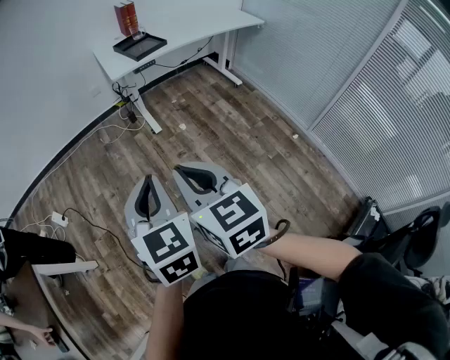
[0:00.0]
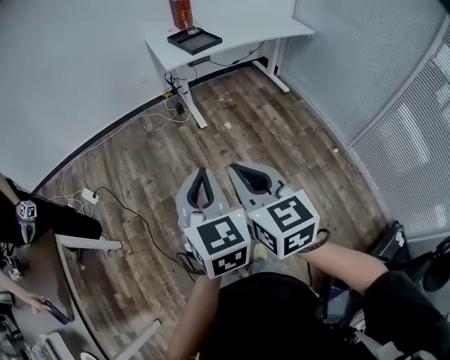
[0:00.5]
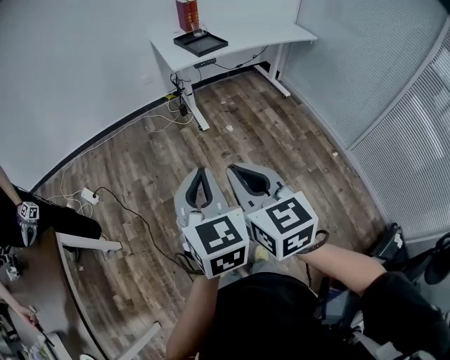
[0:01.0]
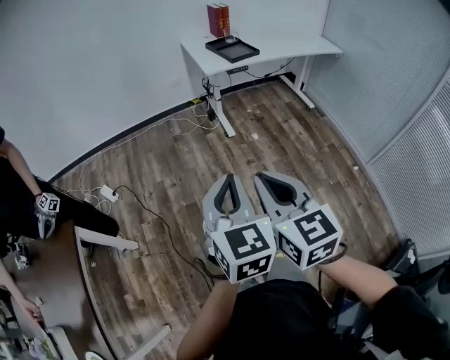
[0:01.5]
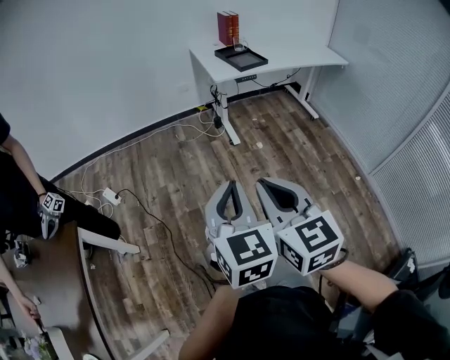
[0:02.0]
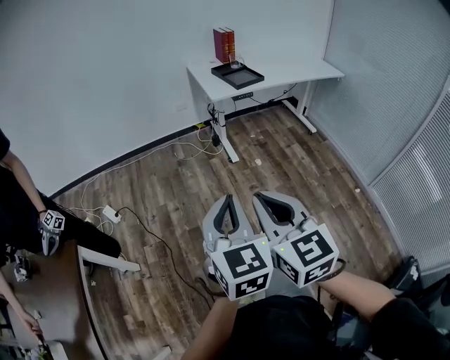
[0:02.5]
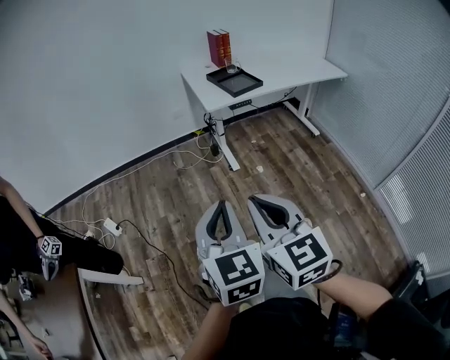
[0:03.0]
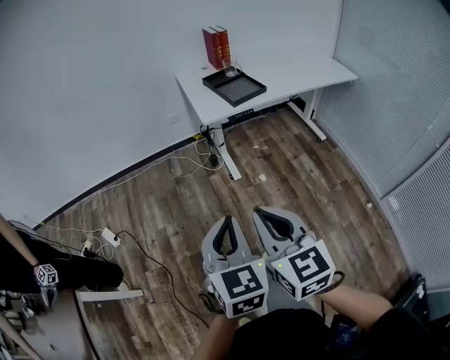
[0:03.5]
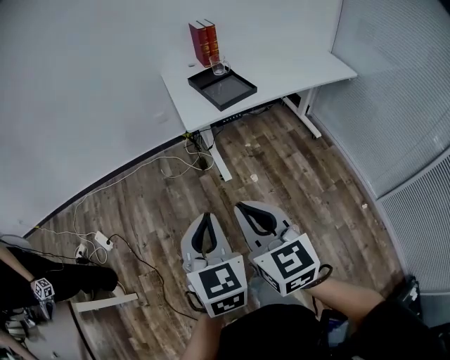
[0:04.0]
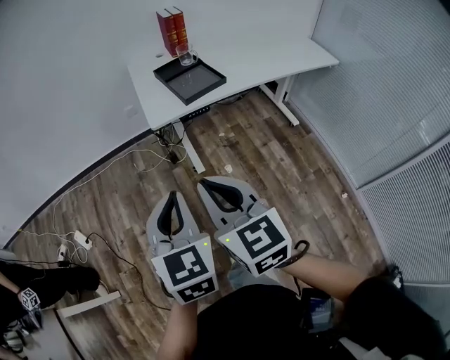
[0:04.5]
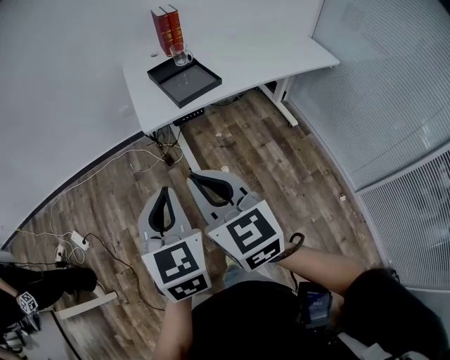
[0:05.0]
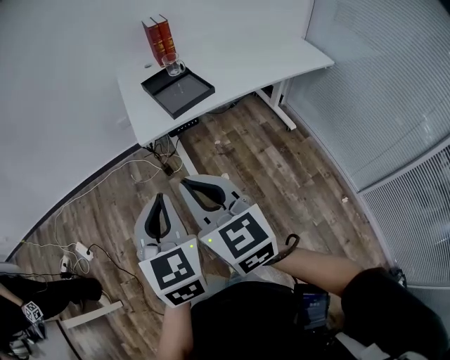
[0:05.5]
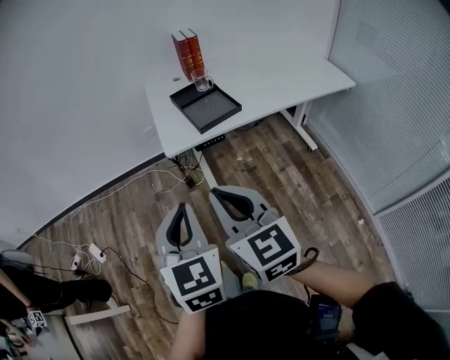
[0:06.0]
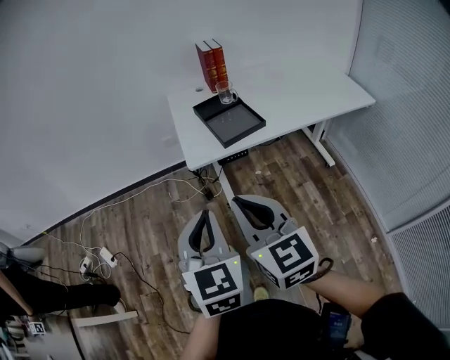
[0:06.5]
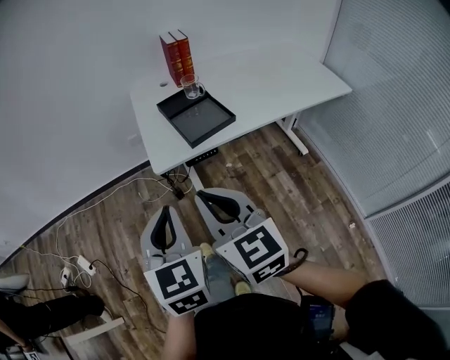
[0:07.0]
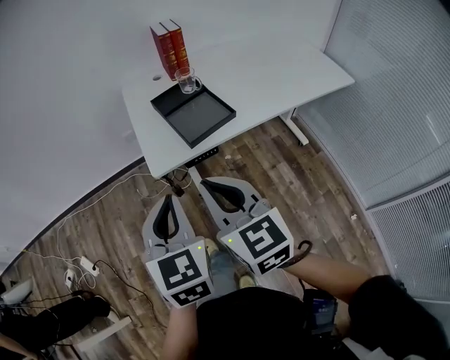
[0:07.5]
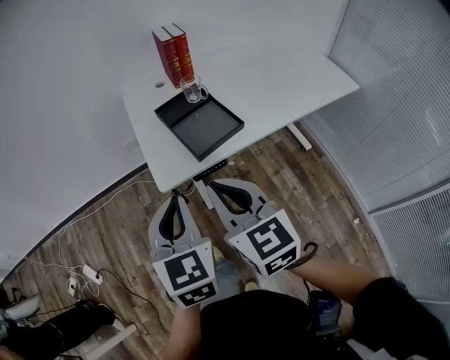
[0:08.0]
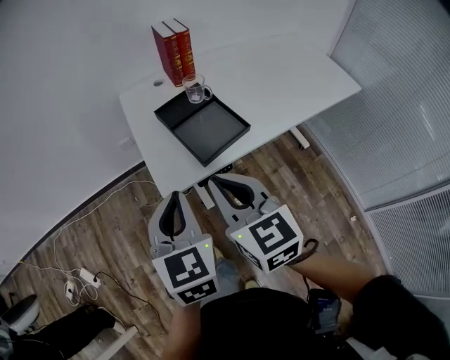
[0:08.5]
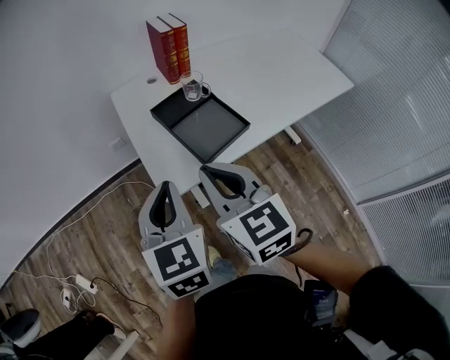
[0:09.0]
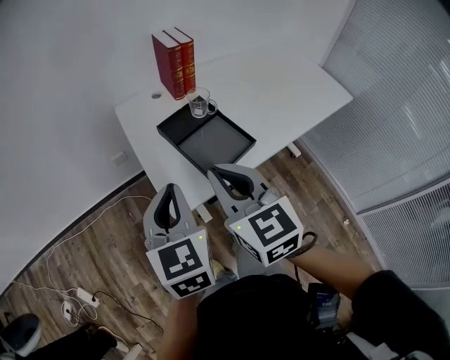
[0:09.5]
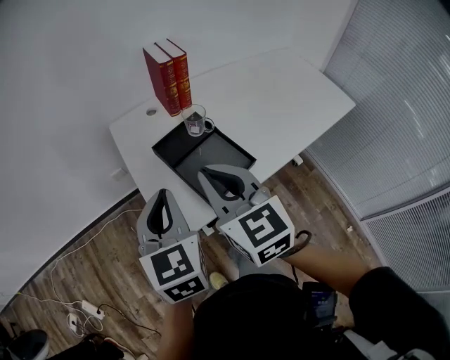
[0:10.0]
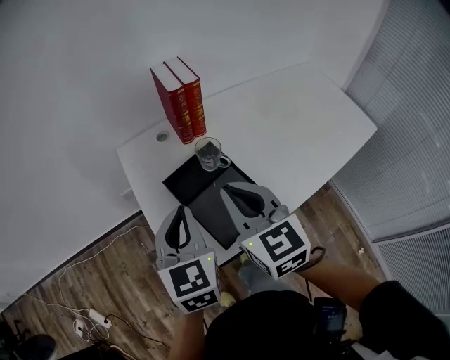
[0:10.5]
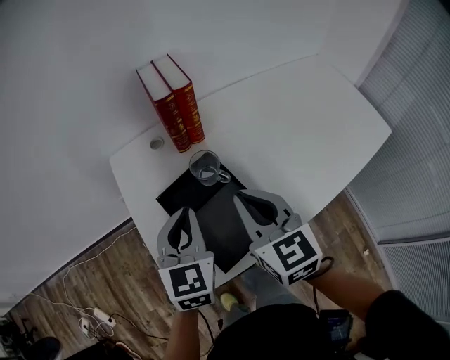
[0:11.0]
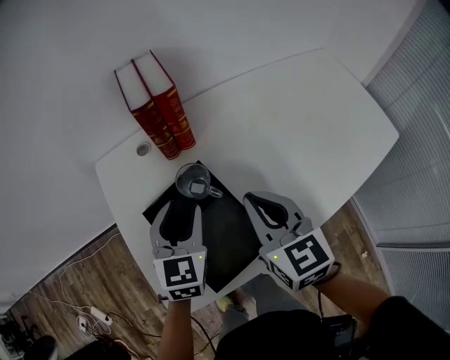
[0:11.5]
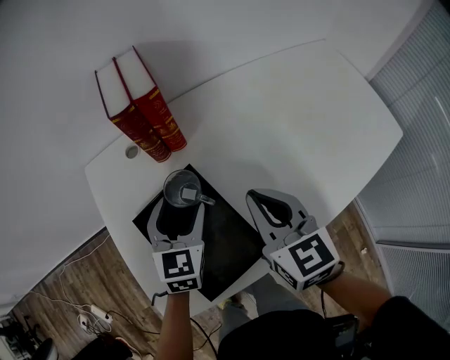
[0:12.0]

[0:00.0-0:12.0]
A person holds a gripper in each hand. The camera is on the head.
0:00.0 to 0:02.0: The grippers both shift to the left by some 10 cm.
0:02.0 to 0:04.0: Both grippers move forward and to the right, approximately 35 cm.
0:04.0 to 0:06.0: Both grippers move forward and to the right, approximately 15 cm.
0:06.0 to 0:08.0: Both grippers travel together forward, about 20 cm.
0:08.0 to 0:10.0: Both grippers move forward, roughly 20 cm.
0:10.0 to 0:12.0: The left gripper goes approximately 30 cm forward, downward and to the right, and opens up; the right gripper goes about 30 cm forward, to the right and downward.

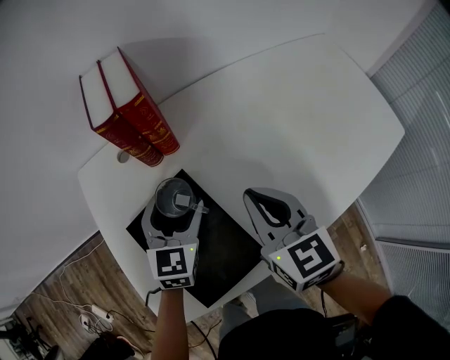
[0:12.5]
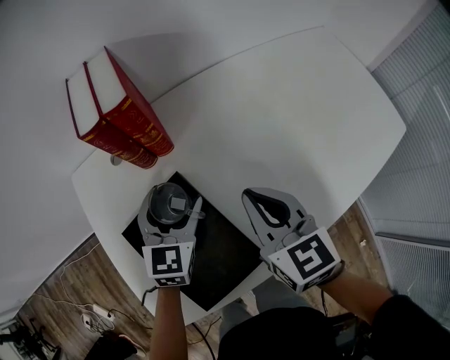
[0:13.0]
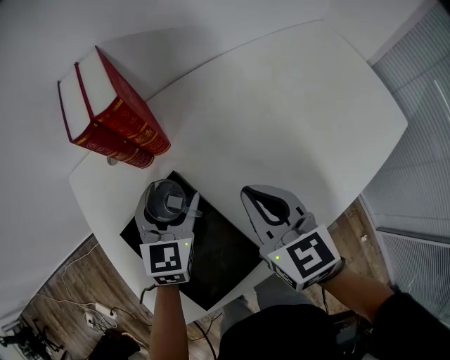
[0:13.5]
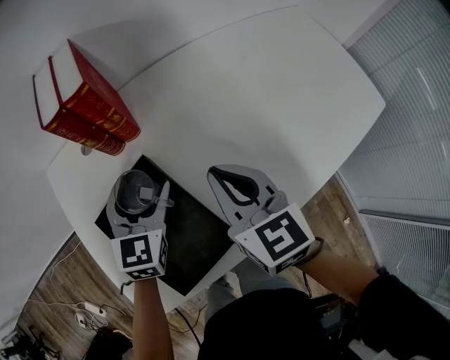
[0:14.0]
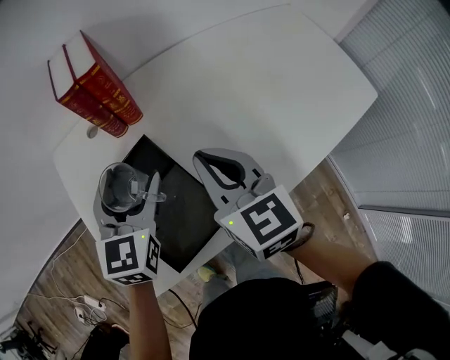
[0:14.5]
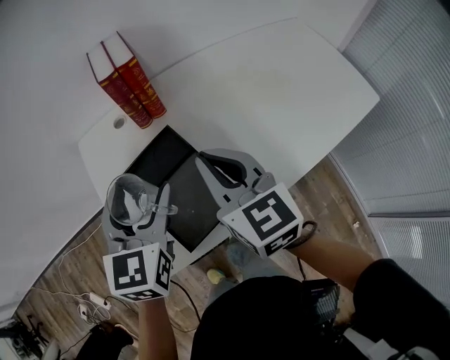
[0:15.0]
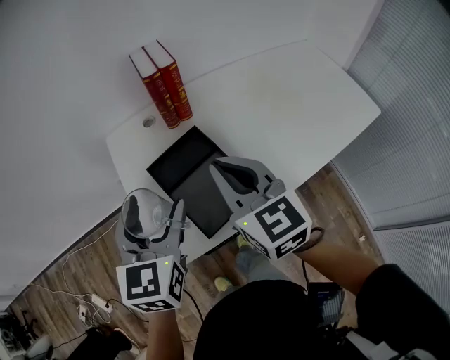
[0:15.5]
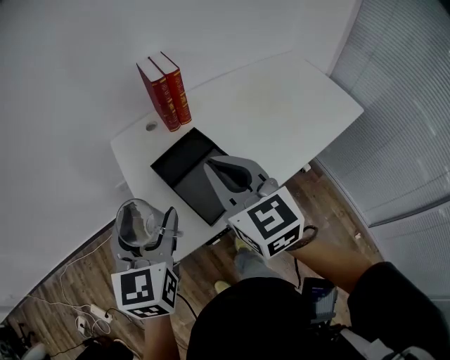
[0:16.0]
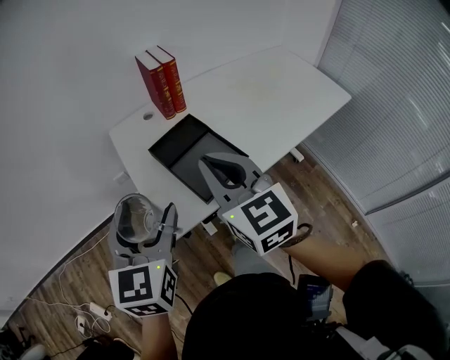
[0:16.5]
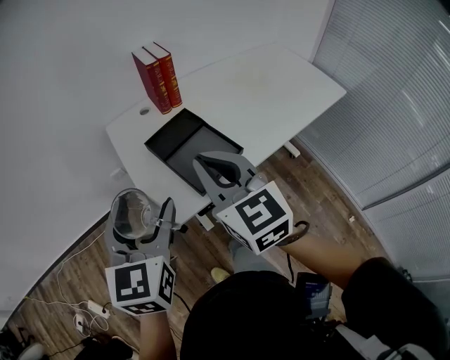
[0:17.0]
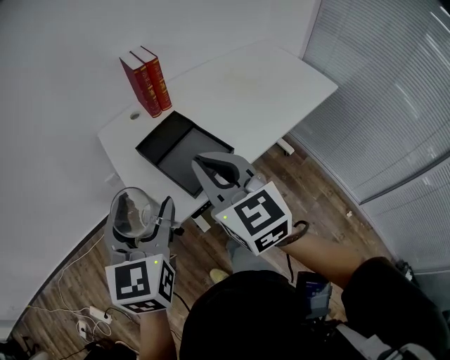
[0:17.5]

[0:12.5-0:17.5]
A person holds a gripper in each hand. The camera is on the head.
0:12.5 to 0:15.0: The right gripper travels backward, upward and to the left by roughly 10 cm; the left gripper is displaced upward and backward by about 20 cm.
0:15.0 to 0:17.5: The left gripper heads backward and to the left, covering about 25 cm; the right gripper is displaced backward, to the left and upward by roughly 25 cm.

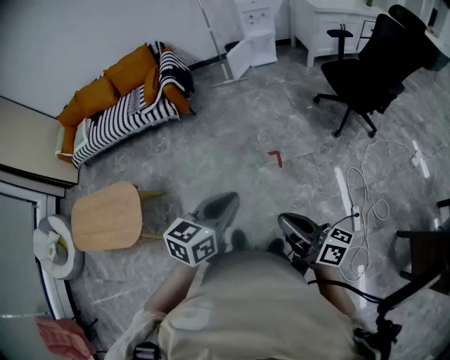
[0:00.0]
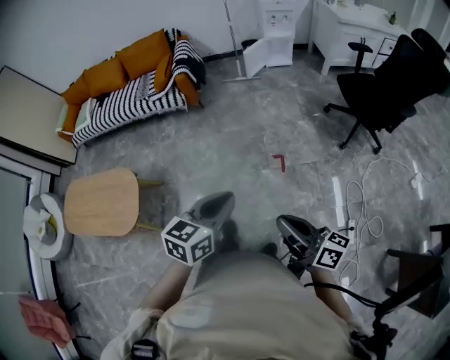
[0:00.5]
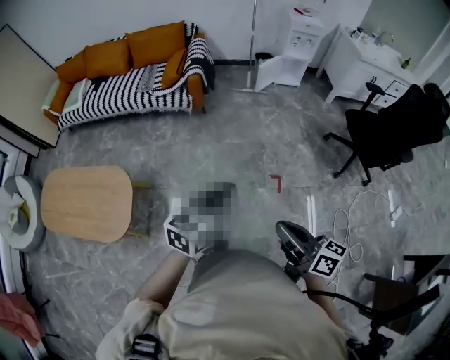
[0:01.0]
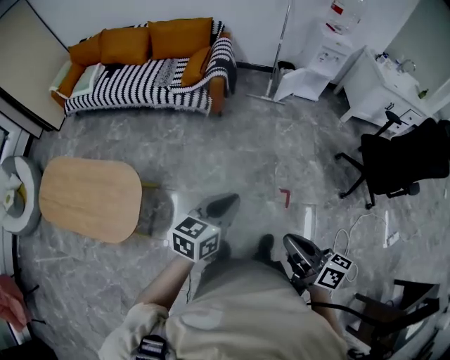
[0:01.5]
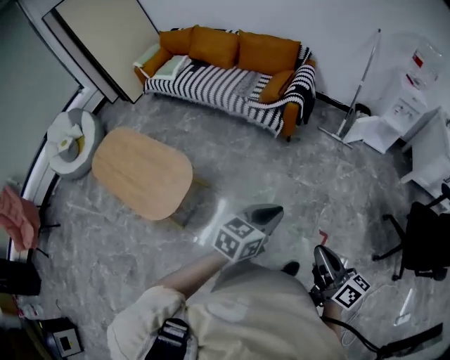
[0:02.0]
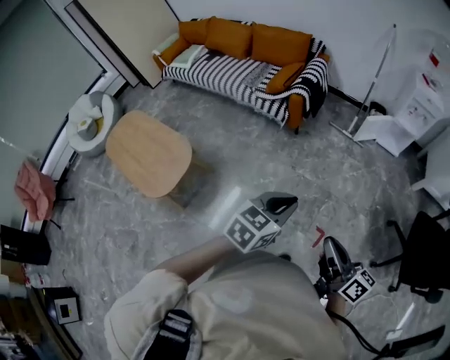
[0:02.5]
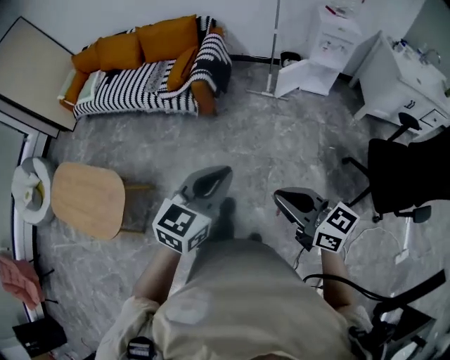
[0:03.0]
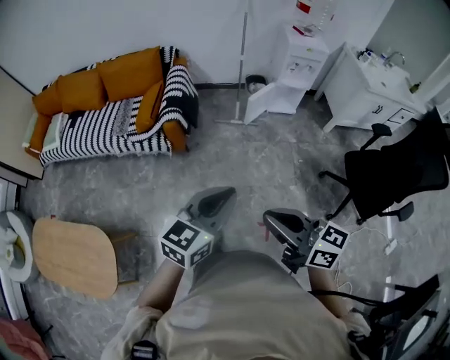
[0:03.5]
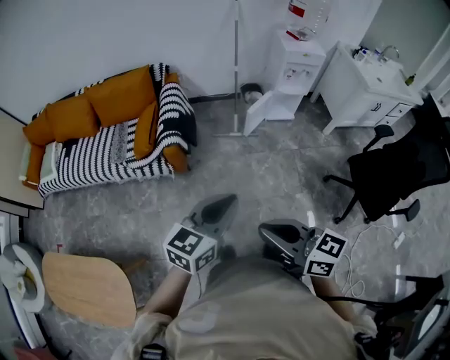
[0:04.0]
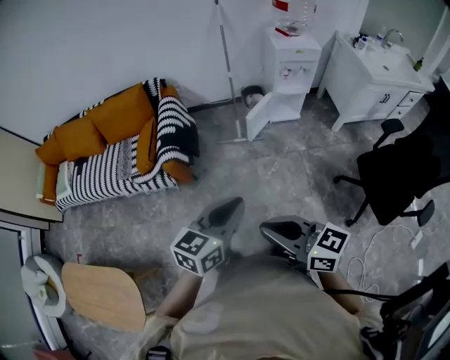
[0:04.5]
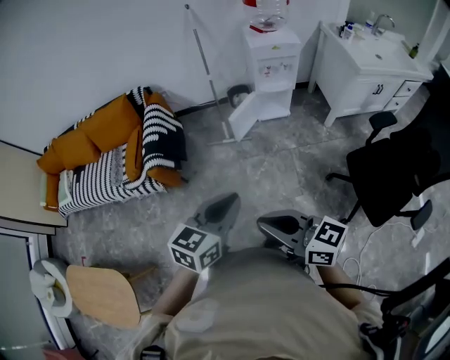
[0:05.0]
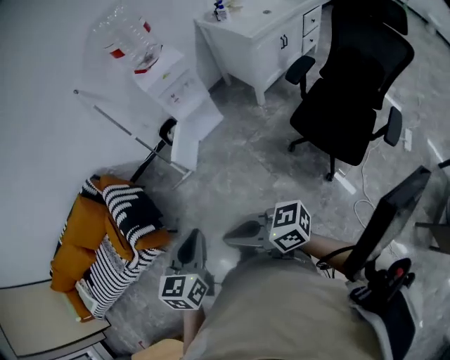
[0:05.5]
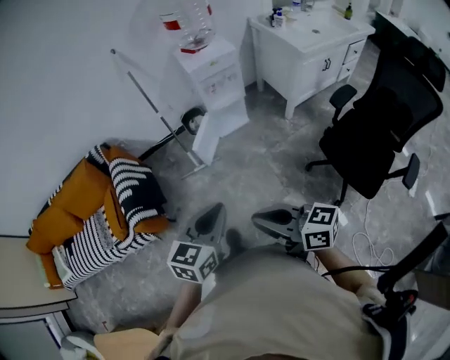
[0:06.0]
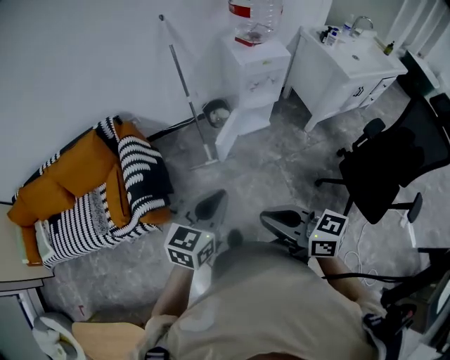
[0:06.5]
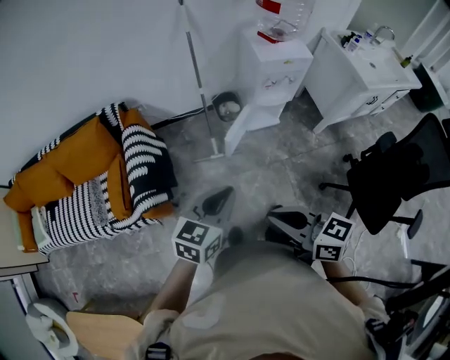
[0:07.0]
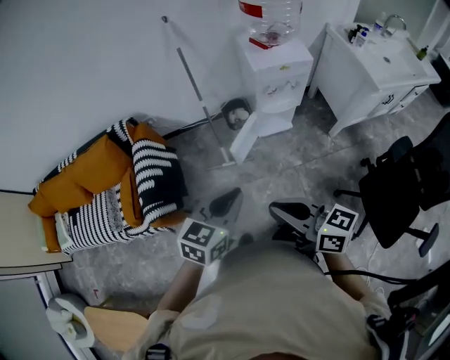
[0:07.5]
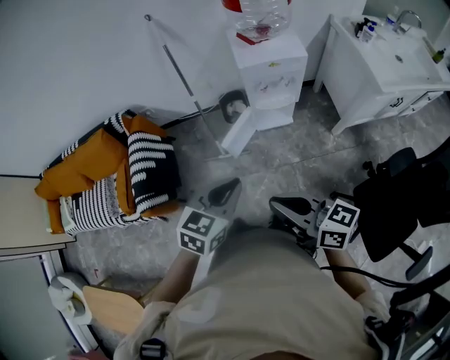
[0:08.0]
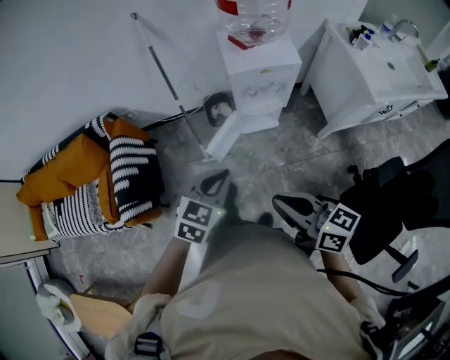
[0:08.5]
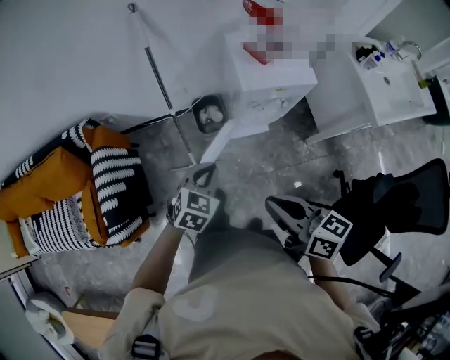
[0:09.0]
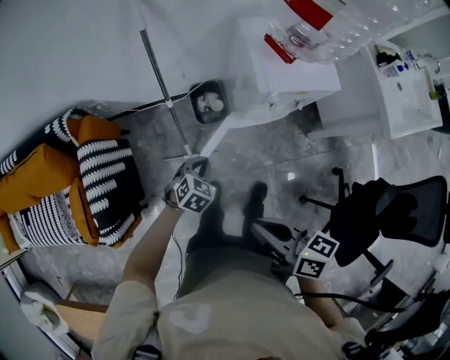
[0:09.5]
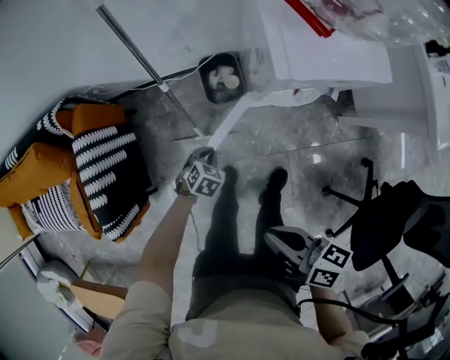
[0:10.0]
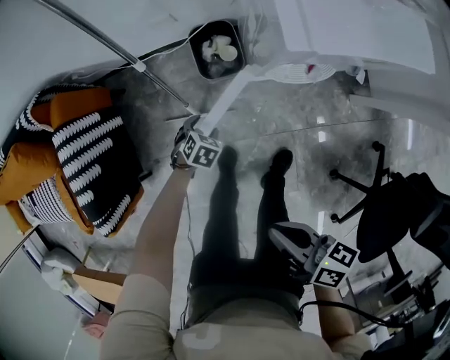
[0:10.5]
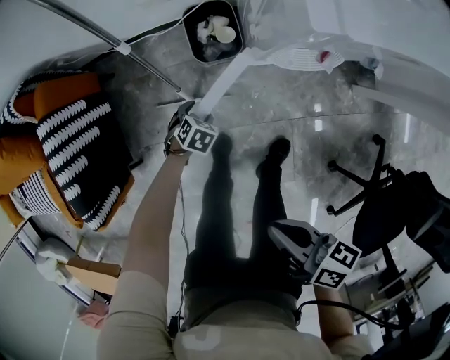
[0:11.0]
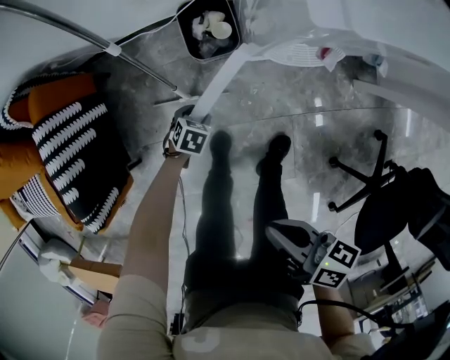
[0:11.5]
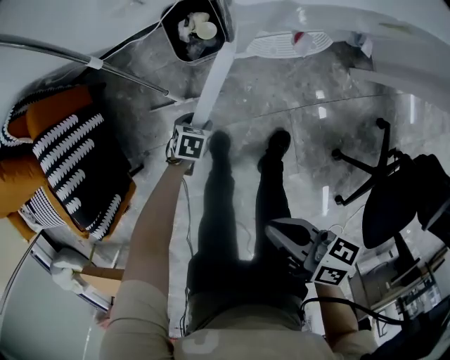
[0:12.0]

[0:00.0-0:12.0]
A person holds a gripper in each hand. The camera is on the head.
0:00.0 to 0:02.0: Both grippers move forward and to the left, some 35 cm. The right gripper swivels about 20 degrees; the left gripper changes its angle by about 20 degrees.
0:02.0 to 0:04.0: The left gripper travels forward and to the right by about 40 cm, and rotates approximately 20 degrees, while the right gripper heads forward, covering some 35 cm.
0:04.0 to 0:06.0: Both grippers move to the right and forward, roughly 35 cm.
0:06.0 to 0:08.0: The two grippers go about 25 cm forward.
0:08.0 to 0:10.0: The left gripper shifts approximately 60 cm downward and forward, and tips its fingers downward by approximately 30 degrees; the right gripper goes roughly 30 cm forward and downward, and rotates roughly 30 degrees.
0:10.0 to 0:12.0: Both grippers travel together downward, about 15 cm. The left gripper changes its angle by approximately 20 degrees, and opens up.
